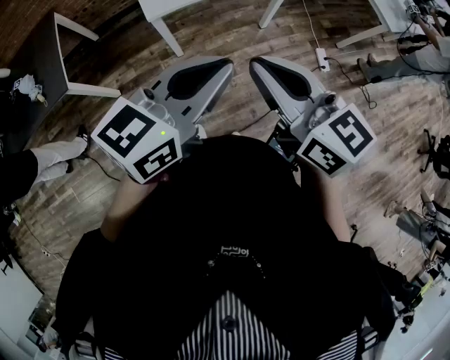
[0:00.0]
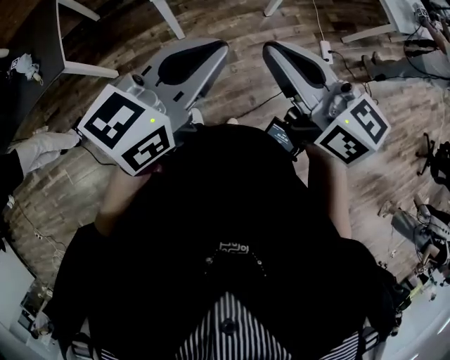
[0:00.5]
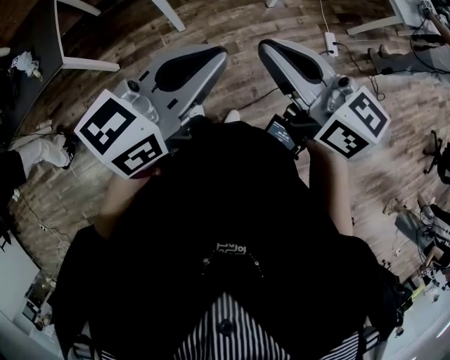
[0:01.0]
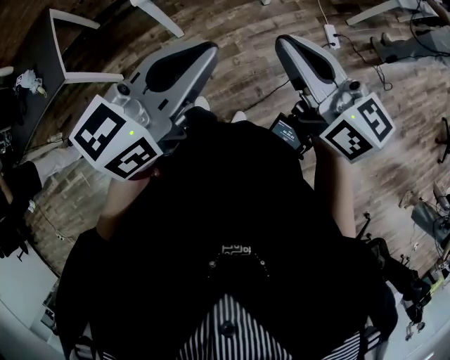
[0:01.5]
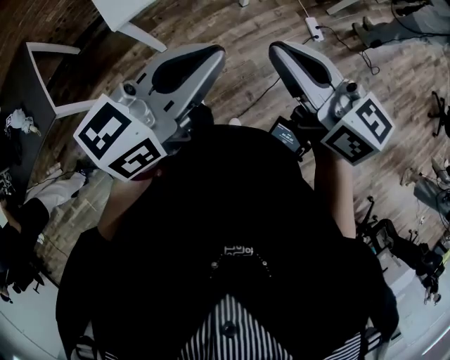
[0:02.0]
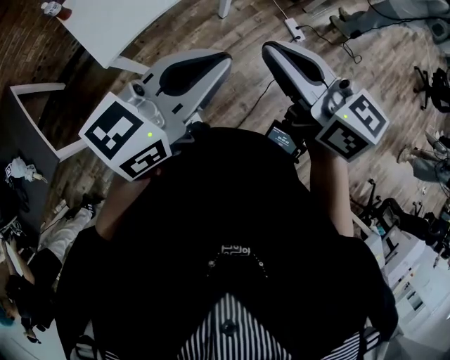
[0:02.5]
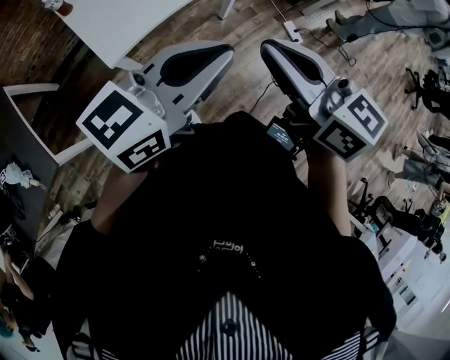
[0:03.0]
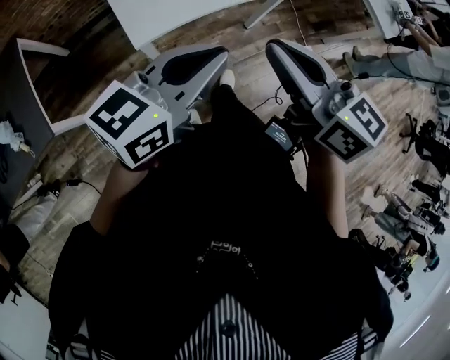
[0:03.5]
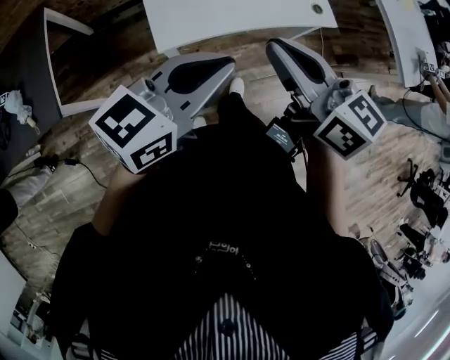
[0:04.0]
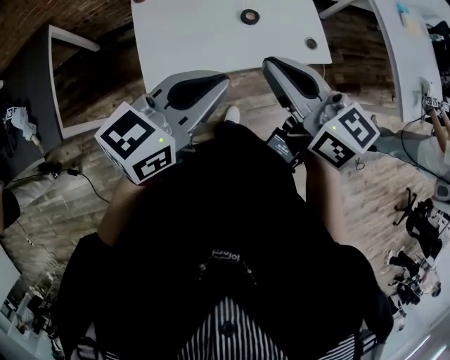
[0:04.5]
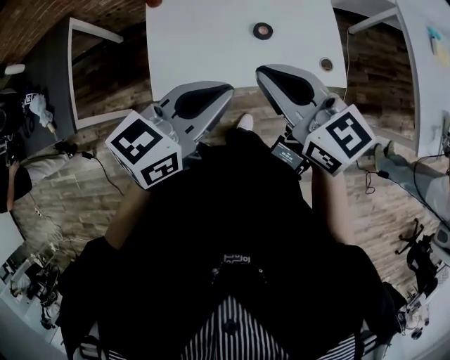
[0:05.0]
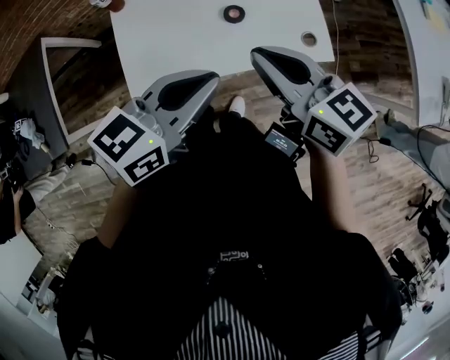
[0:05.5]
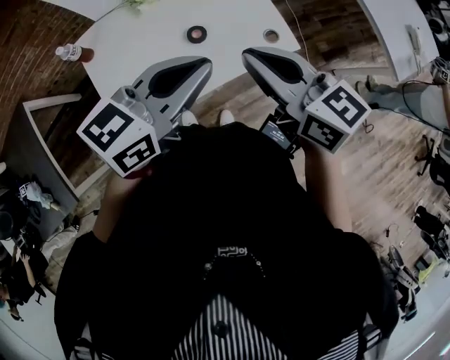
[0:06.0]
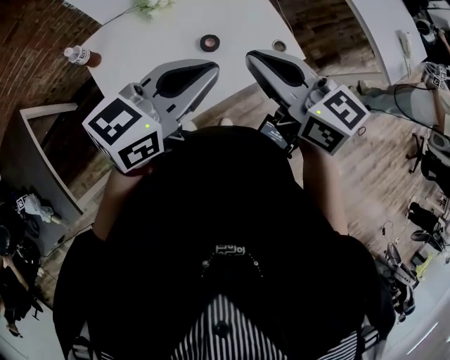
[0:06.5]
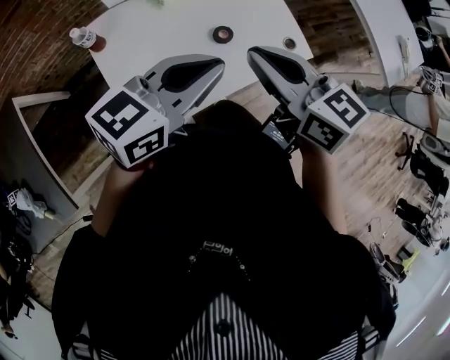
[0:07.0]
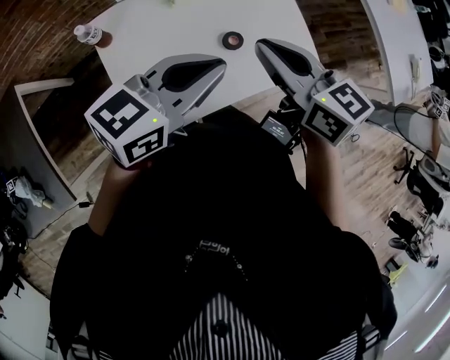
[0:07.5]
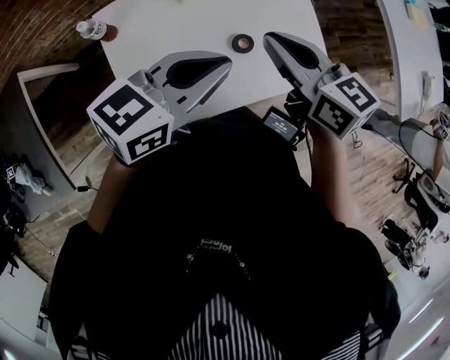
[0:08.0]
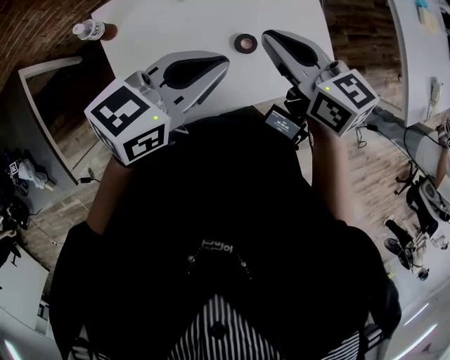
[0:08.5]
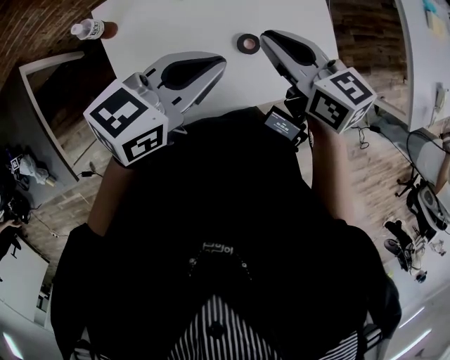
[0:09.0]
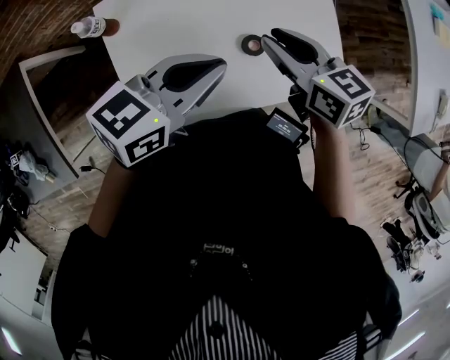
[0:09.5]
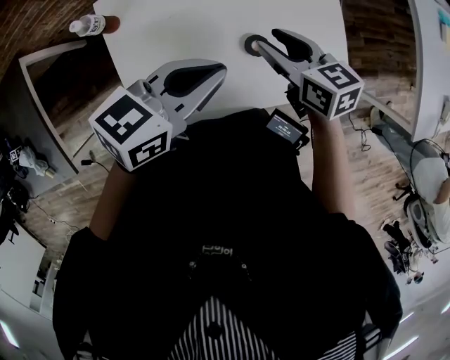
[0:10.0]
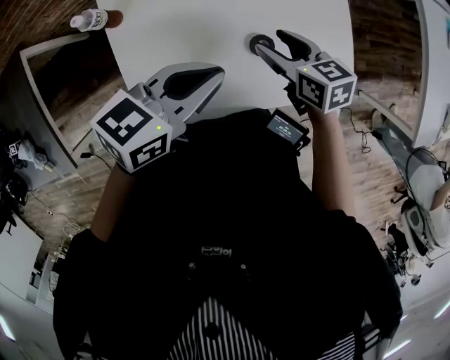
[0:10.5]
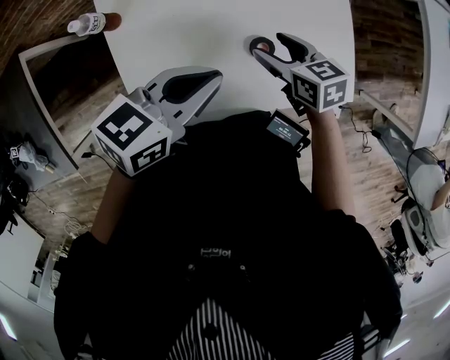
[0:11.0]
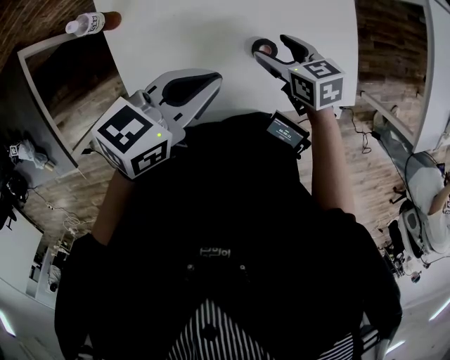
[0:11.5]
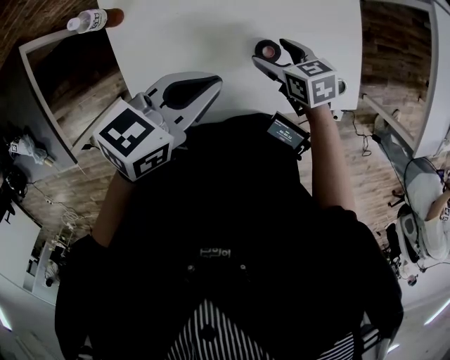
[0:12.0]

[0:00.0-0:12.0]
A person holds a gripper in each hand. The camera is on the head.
0:00.0 to 0:02.0: Both grippers travel together to the right, approximately 10 cm.
0:02.0 to 0:04.0: The grippers both shift forward and to the left by approximately 30 cm.
0:04.0 to 0:06.0: The two grippers go about 25 cm forward and to the right.
0:06.0 to 0:08.0: The left gripper travels to the left and forward by about 15 cm. The right gripper shifts about 15 cm forward and to the left.
0:08.0 to 0:10.0: The left gripper is displaced downward by some 5 cm; the right gripper heads downward, covering some 15 cm, and opens its fingers.
0:10.0 to 0:12.0: The right gripper shifts roughly 15 cm downward, and opens.

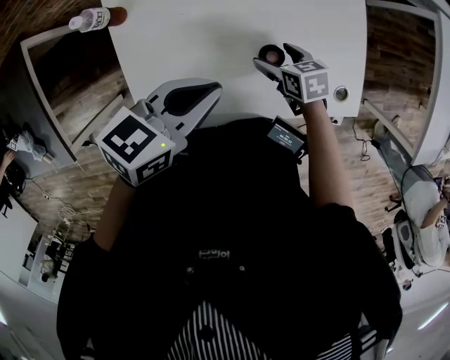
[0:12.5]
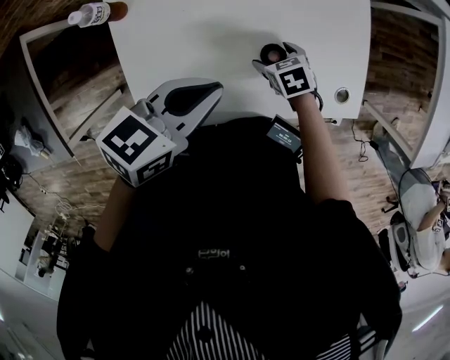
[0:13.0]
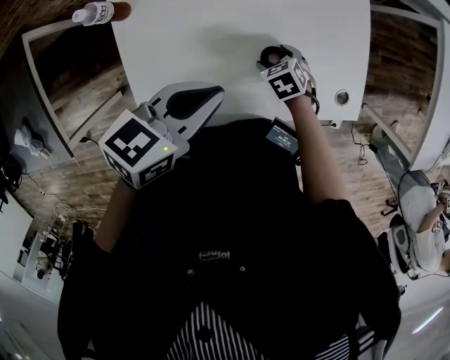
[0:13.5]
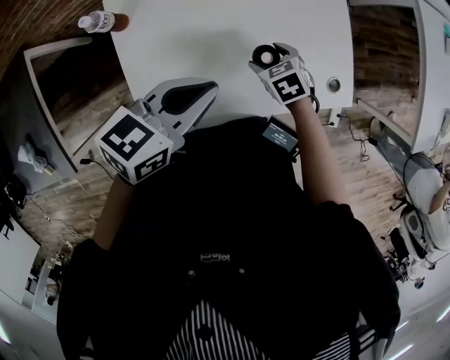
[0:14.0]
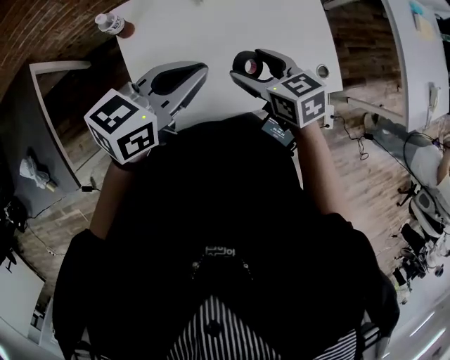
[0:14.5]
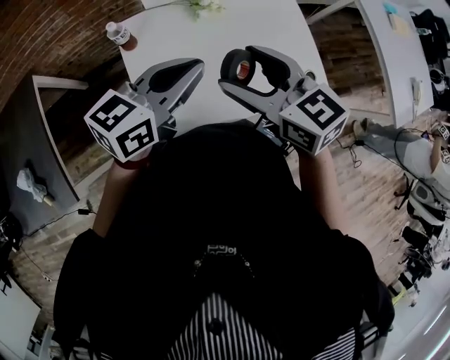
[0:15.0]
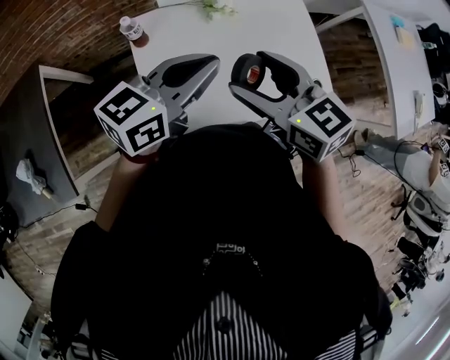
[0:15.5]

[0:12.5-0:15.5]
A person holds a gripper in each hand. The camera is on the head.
0:12.5 to 0:14.0: The right gripper goes downward and returns, roughly 5 cm each way, and turns by about 20 degrees.
0:14.0 to 0:15.5: The left gripper travels upward and to the left by approximately 10 cm, and rotates roughly 20 degrees. Meanwhile the right gripper moves upward, approximately 30 cm, and tilts its fingers some 40 degrees upward.

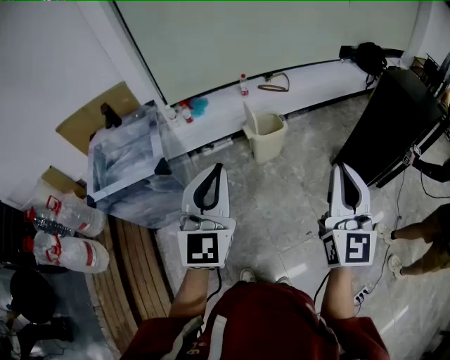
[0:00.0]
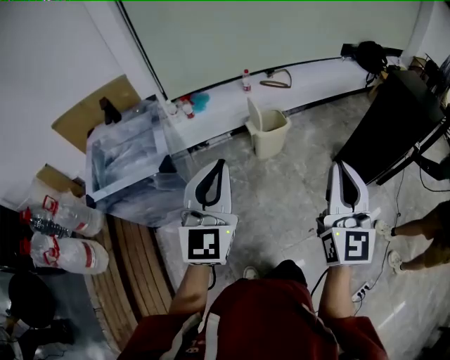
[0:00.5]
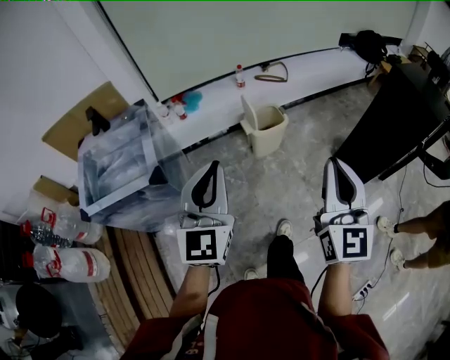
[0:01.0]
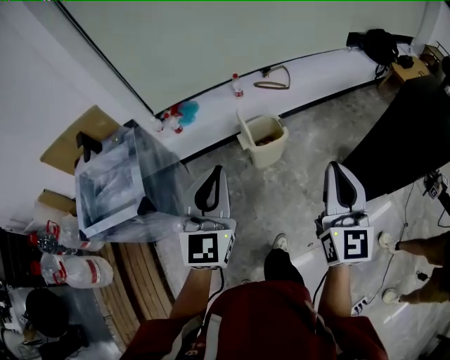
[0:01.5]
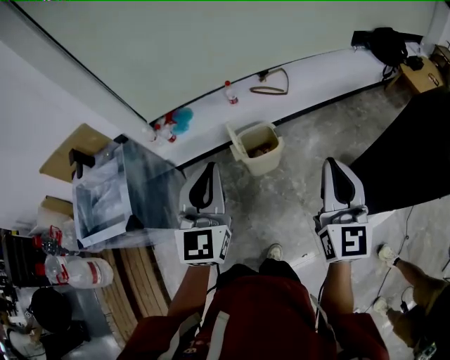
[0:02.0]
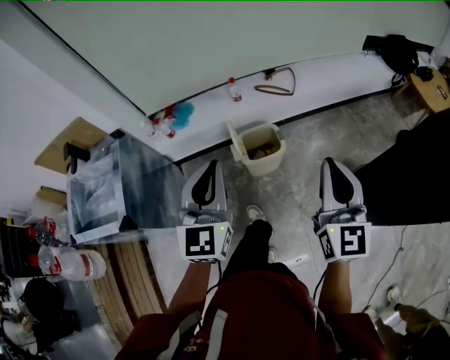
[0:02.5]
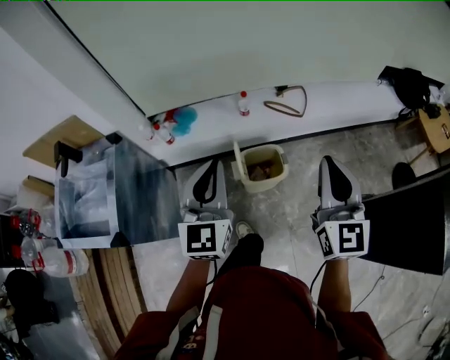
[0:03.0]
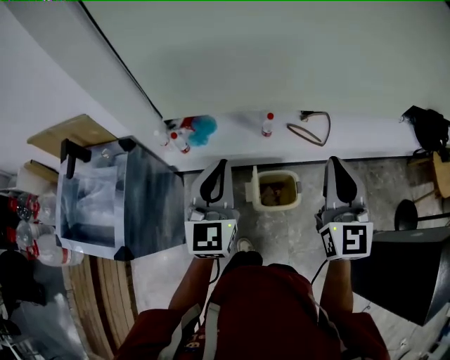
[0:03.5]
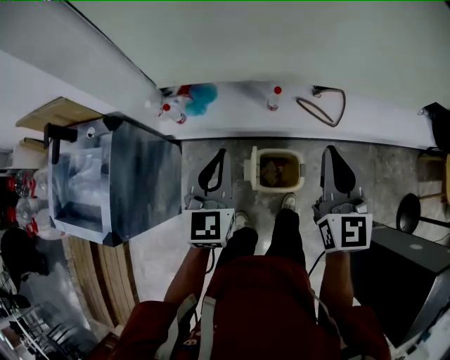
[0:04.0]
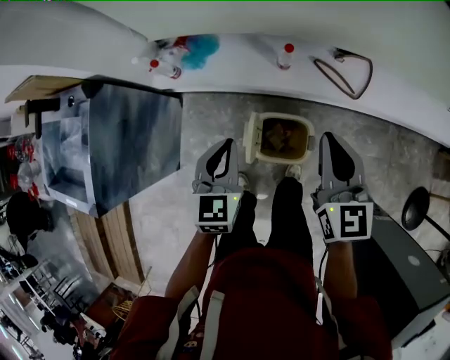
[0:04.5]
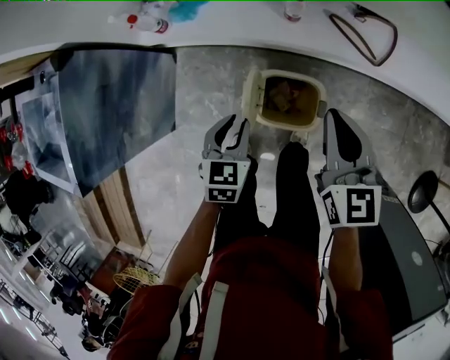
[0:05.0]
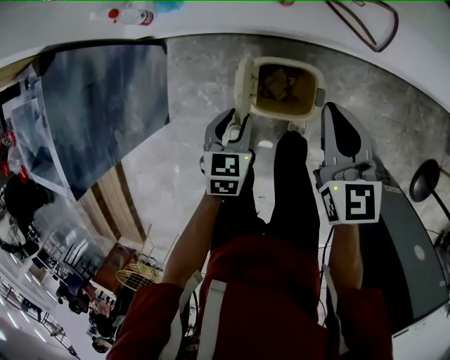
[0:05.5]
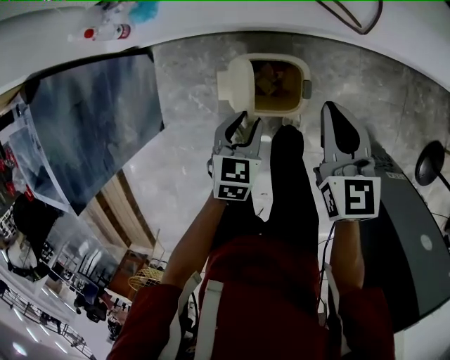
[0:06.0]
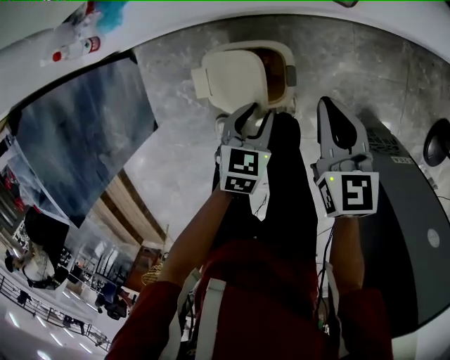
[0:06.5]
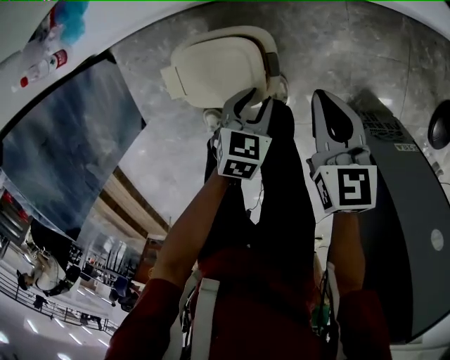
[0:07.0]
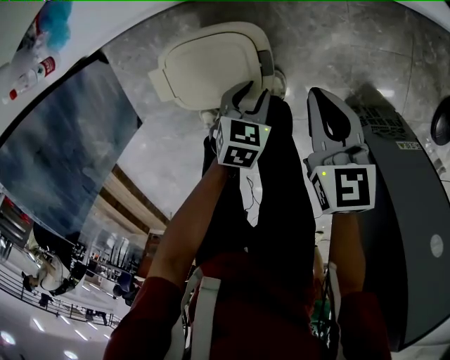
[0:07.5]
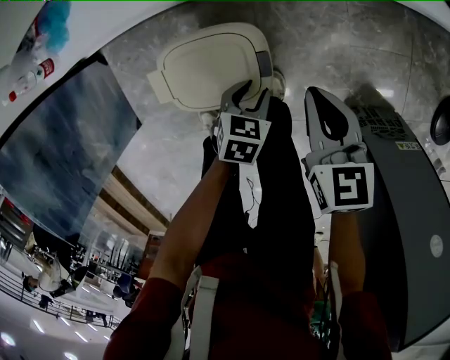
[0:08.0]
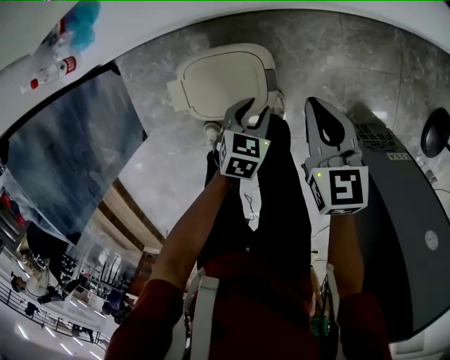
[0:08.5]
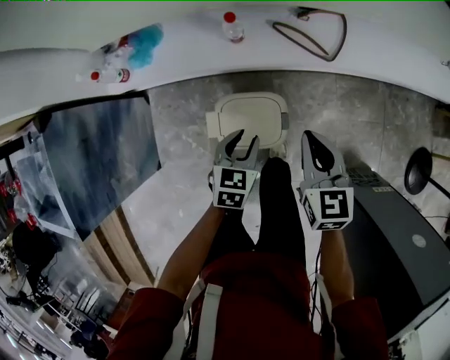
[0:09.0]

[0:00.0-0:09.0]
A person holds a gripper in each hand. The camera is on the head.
0:00.0 to 0:02.0: Both grippers travel together forward, some 35 cm.
0:02.0 to 0:04.5: The left gripper ends up about 50 cm from where it was, and changes its angle by some 40 degrees. Meanwhile the right gripper shifts by approximately 50 cm, and turns by some 40 degrees.
0:04.5 to 0:07.0: The grippers both shift downward and to the right by about 40 cm. The left gripper swivels roughly 40 degrees, and opens, while the right gripper changes its angle by some 30 degrees.
0:07.0 to 0:09.0: Both grippers travel together upward and to the left, approximately 20 cm.

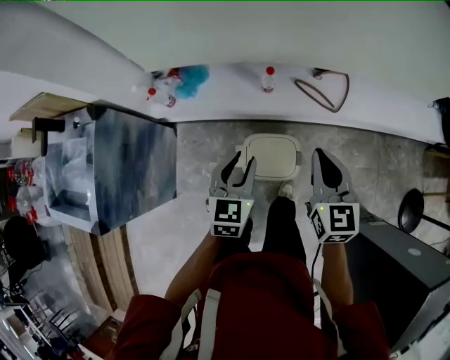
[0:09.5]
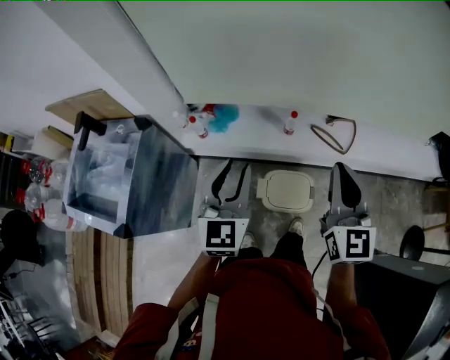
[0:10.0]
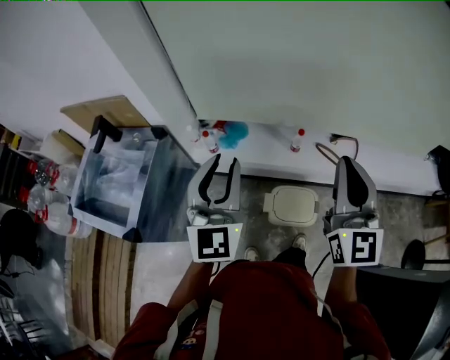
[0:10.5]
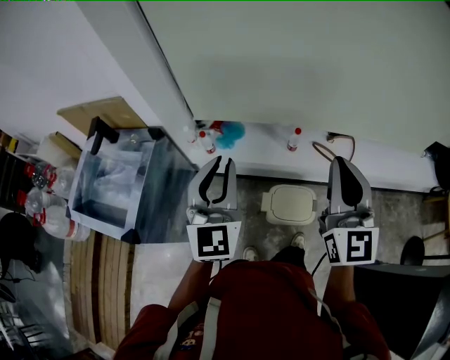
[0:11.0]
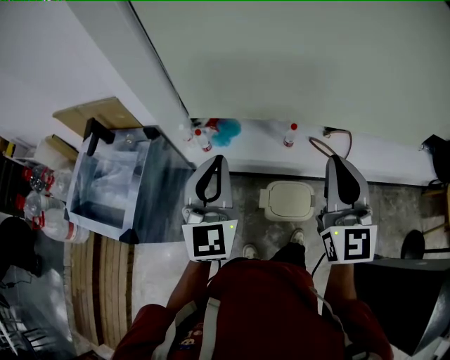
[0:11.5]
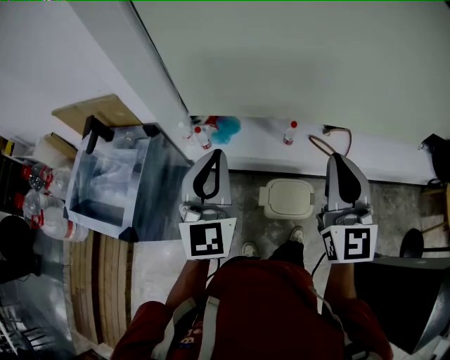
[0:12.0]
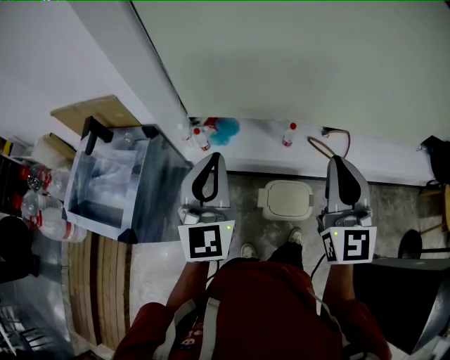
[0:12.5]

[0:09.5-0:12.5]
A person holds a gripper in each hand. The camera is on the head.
0:09.5 to 0:11.0: Both grippers move upward and to the left, about 30 cm. The right gripper rotates about 30 degrees; the left gripper tips its fingers upward by approximately 30 degrees.
0:11.0 to 0:12.5: There are only small adjustments of the grippers.
